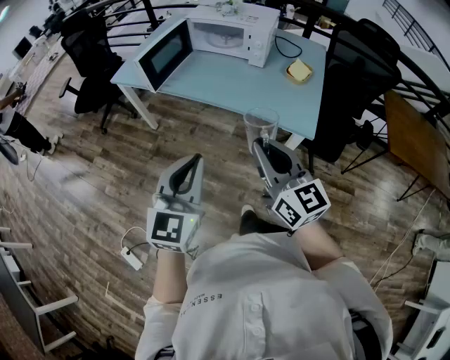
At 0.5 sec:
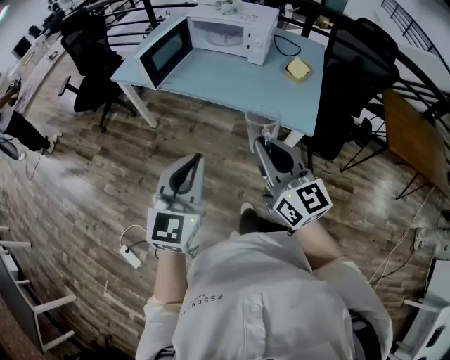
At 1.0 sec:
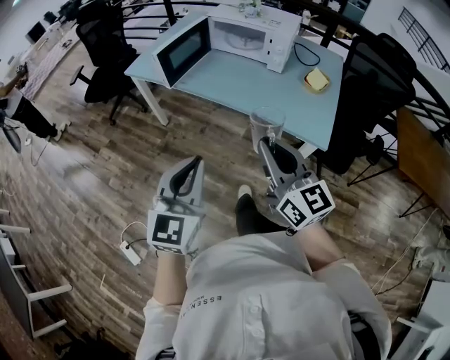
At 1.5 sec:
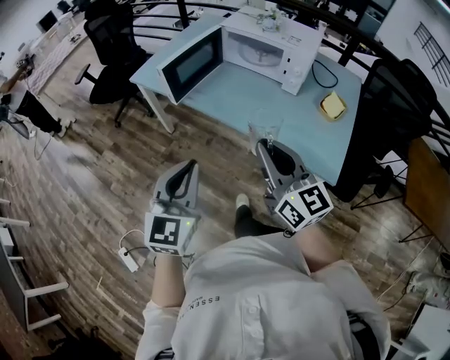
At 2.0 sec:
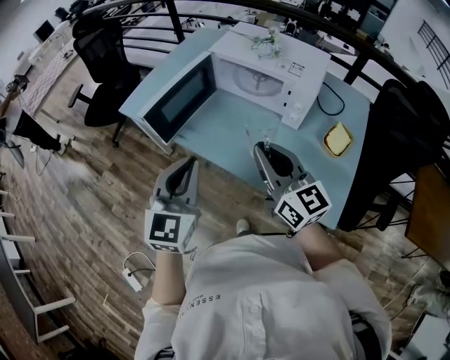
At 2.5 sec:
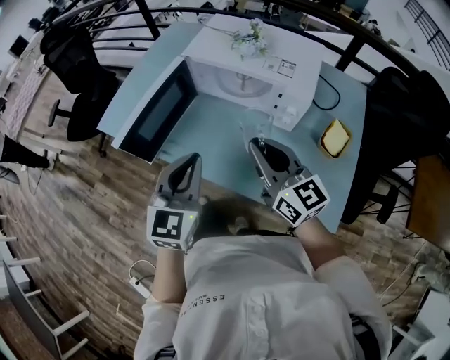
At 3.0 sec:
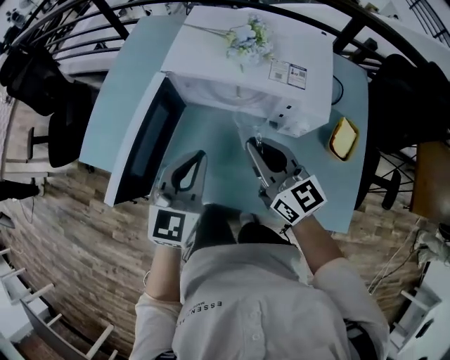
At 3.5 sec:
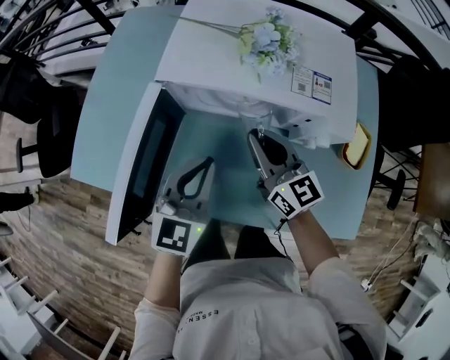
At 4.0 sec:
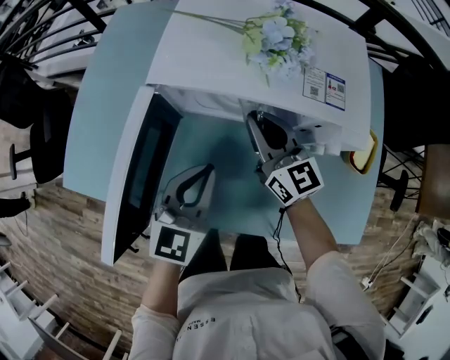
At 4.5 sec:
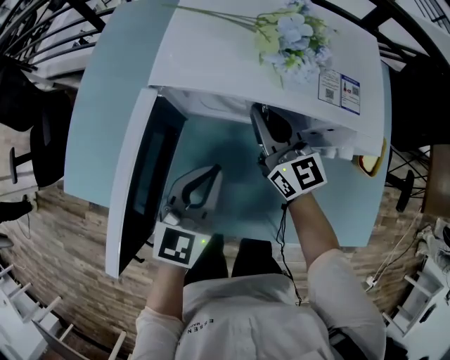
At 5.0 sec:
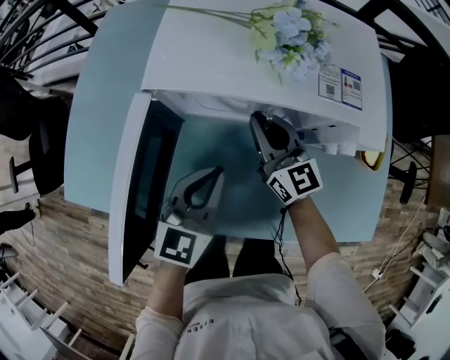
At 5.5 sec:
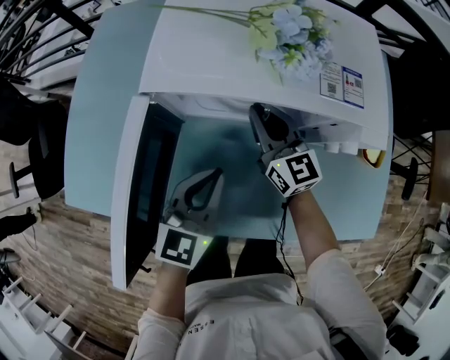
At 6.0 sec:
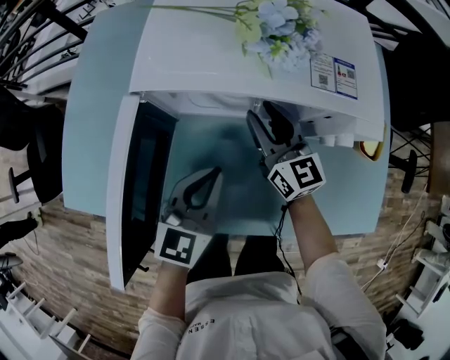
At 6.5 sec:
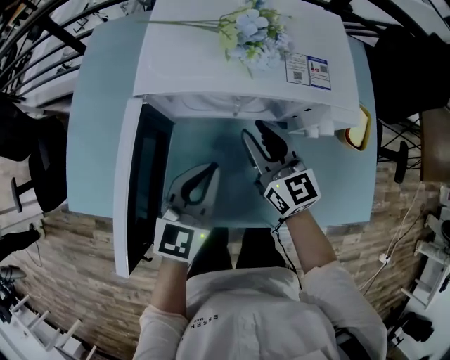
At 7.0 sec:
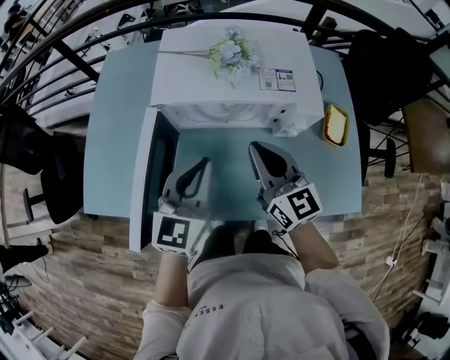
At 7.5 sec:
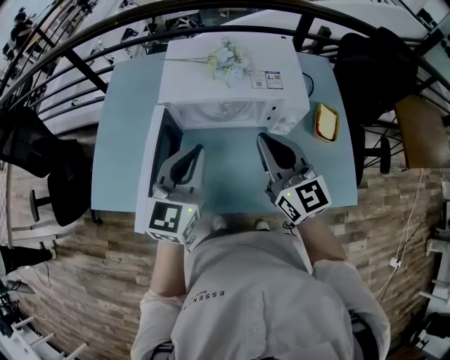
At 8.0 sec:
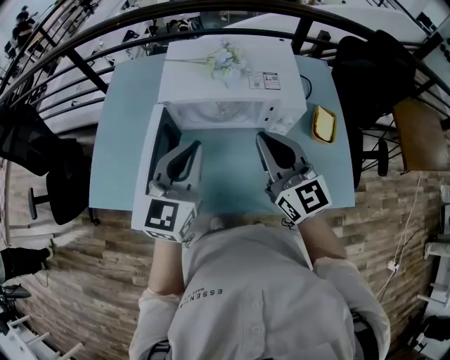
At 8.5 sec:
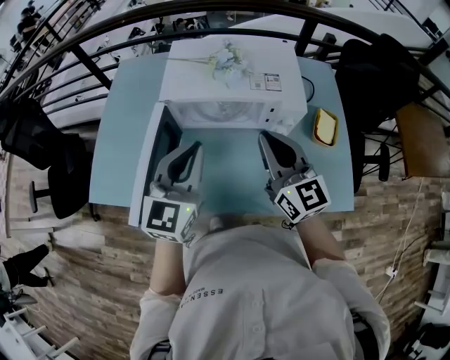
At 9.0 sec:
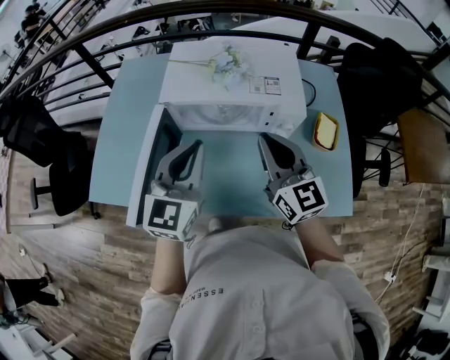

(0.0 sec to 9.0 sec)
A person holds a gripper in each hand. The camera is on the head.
0.0 sec - 2.0 sec: The grippers both shift forward by approximately 35 cm.
2.0 sec - 4.5 sec: The right gripper changes place by some 40 cm, and turns by some 20 degrees. Meanwhile the left gripper shifts by roughly 35 cm, and turns by some 30 degrees.
4.5 sec - 7.0 sec: The left gripper heads upward, covering approximately 10 cm. The right gripper is displaced backward and upward by about 15 cm, and opens, then closes once more.
7.0 sec - 9.0 sec: Both grippers move upward, some 5 cm.

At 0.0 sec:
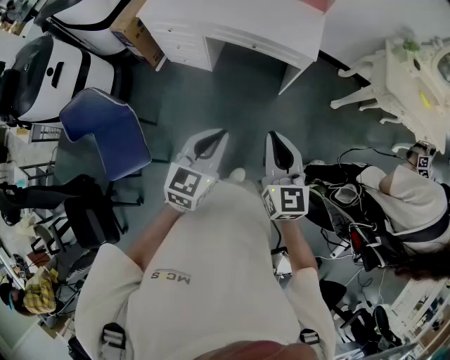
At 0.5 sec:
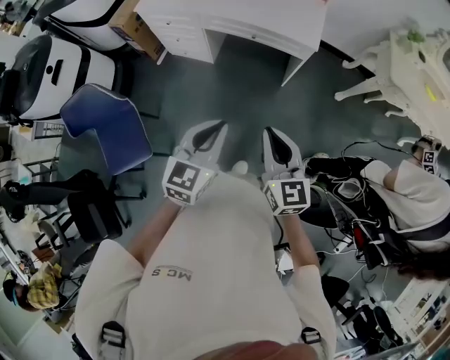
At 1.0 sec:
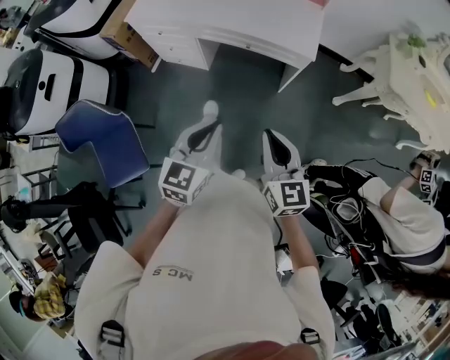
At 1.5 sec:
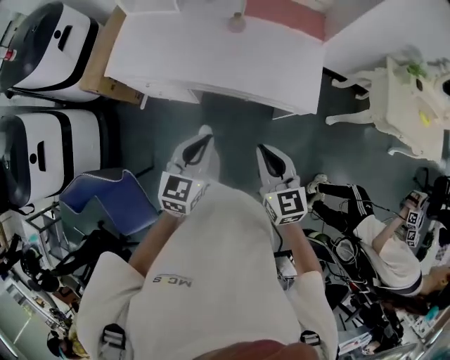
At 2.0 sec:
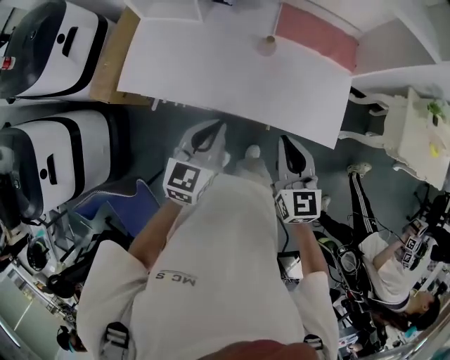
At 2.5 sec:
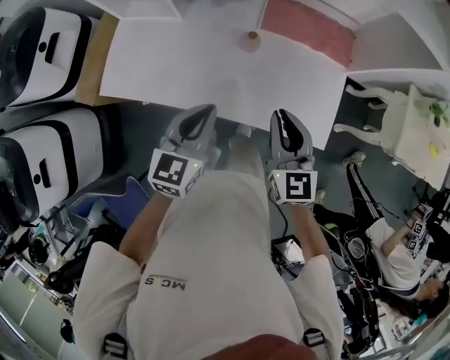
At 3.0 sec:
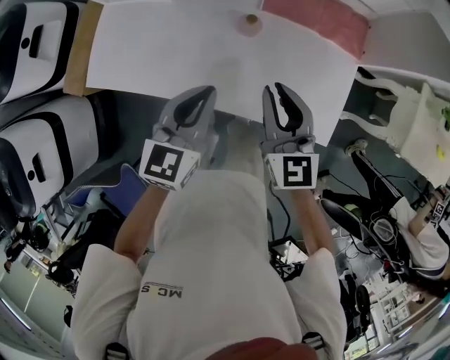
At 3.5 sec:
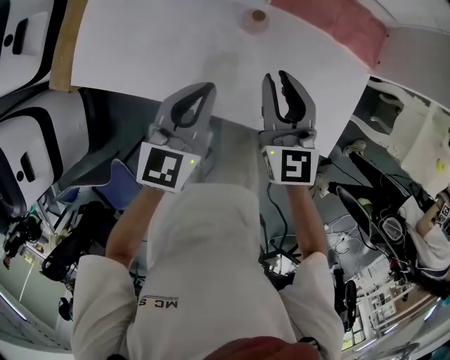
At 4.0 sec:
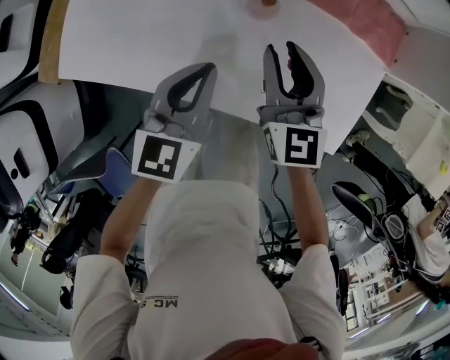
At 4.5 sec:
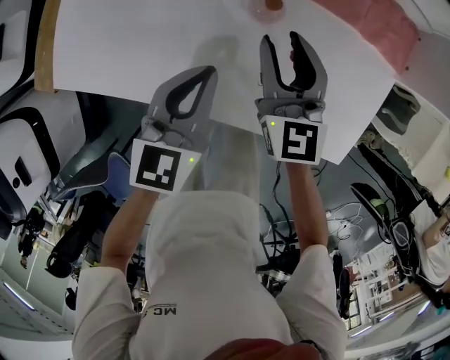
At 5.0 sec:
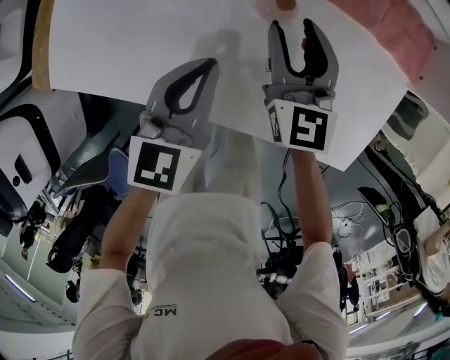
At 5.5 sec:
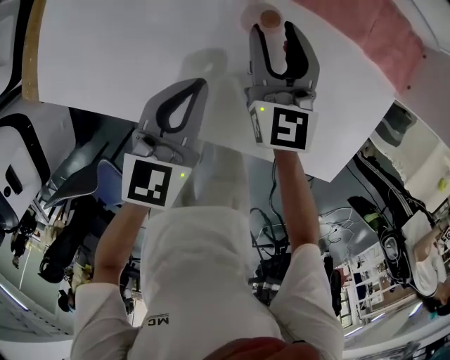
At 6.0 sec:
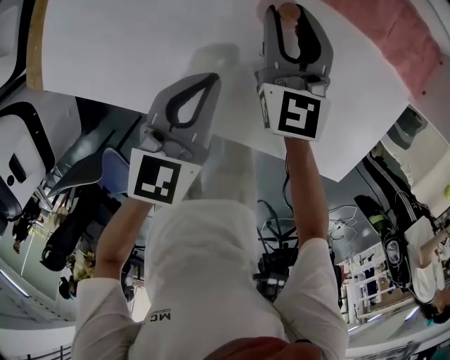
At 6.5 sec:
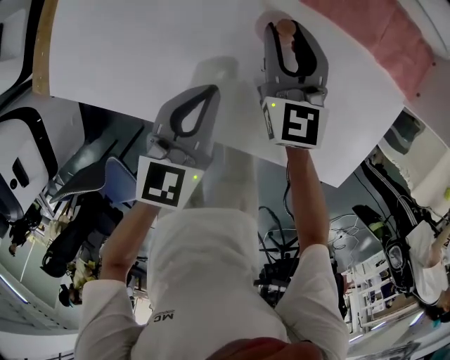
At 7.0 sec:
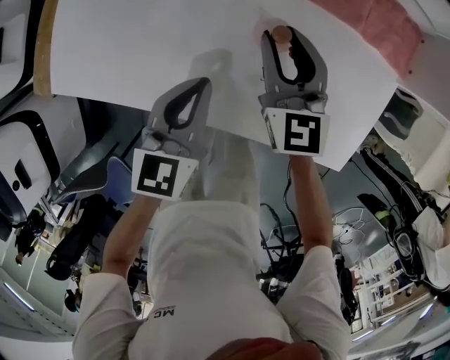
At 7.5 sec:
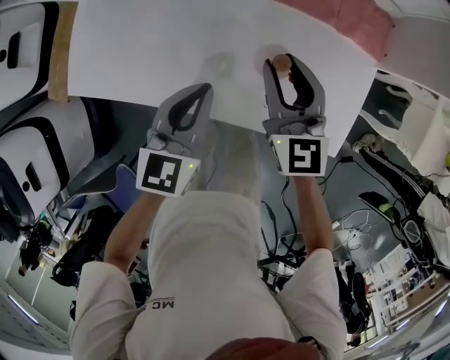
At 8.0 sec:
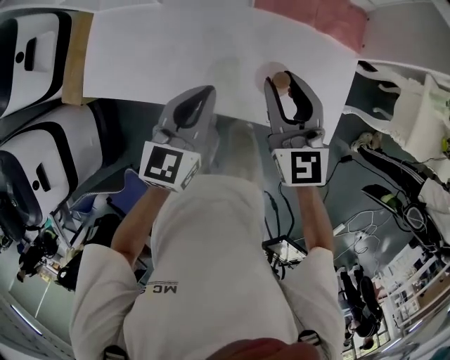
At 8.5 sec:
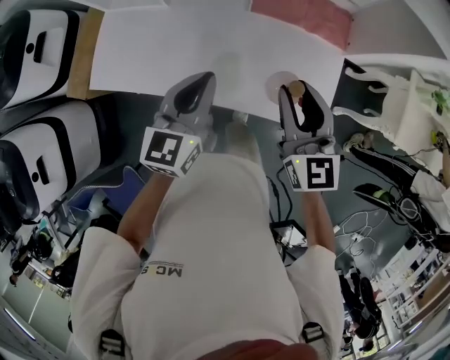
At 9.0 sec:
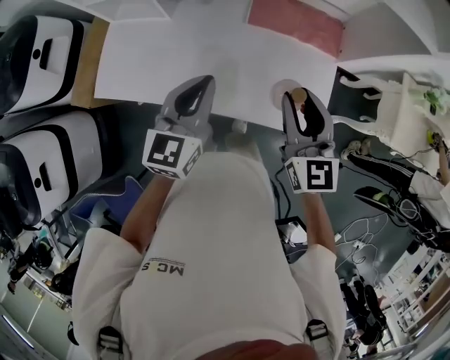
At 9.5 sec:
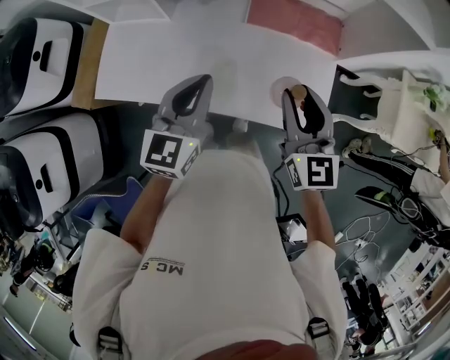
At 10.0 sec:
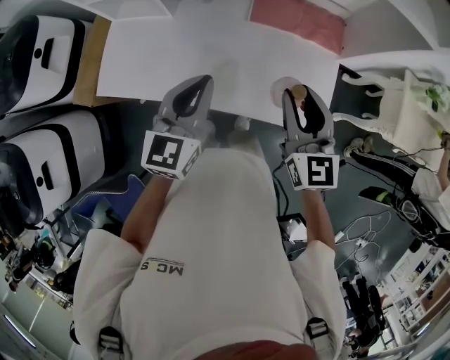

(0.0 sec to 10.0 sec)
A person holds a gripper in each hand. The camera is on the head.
0.0 sec - 2.0 sec: The pair of grippers is taken to the left and forward, about 50 cm.
2.0 sec - 4.0 sec: The grippers both shift forward and downward by about 30 cm. The right gripper opens up.
4.0 sec - 6.0 sec: The right gripper goes approximately 15 cm downward and forward. Meanwhile the left gripper travels downward by roughly 10 cm.
6.0 sec - 8.0 sec: The two grippers go approximately 30 cm upward and backward.
8.0 sec - 10.0 sec: The left gripper travels upward by approximately 10 cm. The right gripper heads upward and backward, covering about 10 cm.

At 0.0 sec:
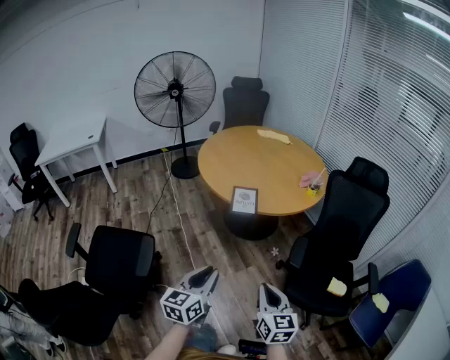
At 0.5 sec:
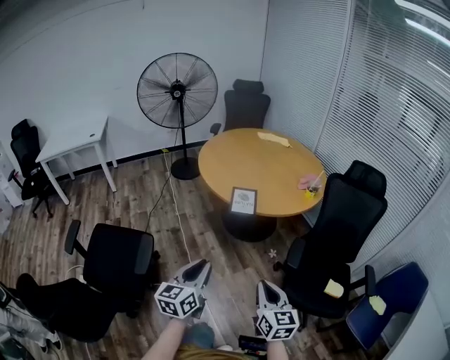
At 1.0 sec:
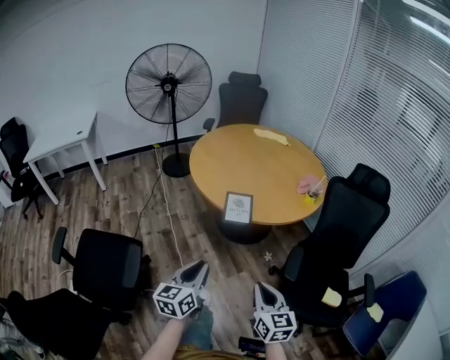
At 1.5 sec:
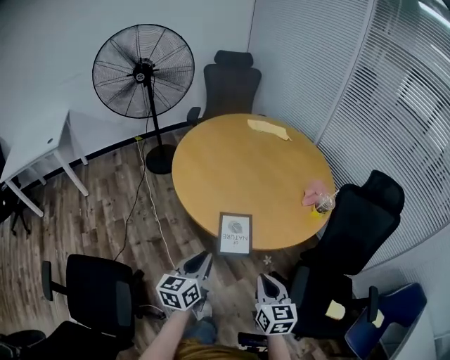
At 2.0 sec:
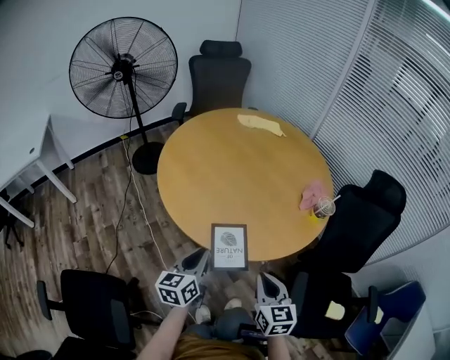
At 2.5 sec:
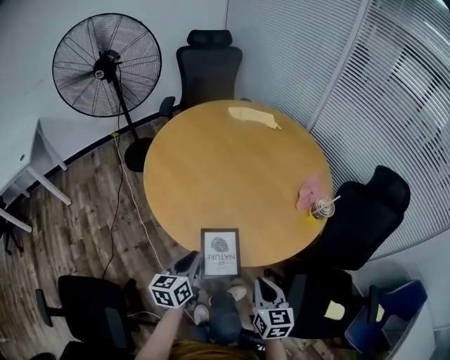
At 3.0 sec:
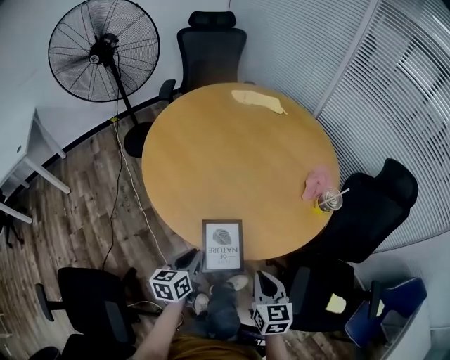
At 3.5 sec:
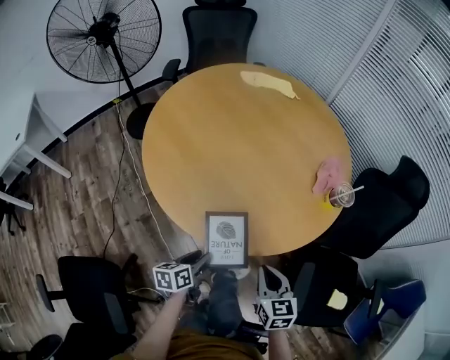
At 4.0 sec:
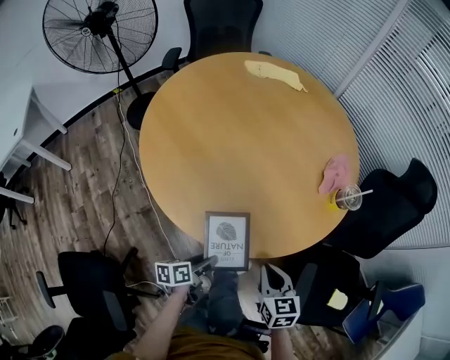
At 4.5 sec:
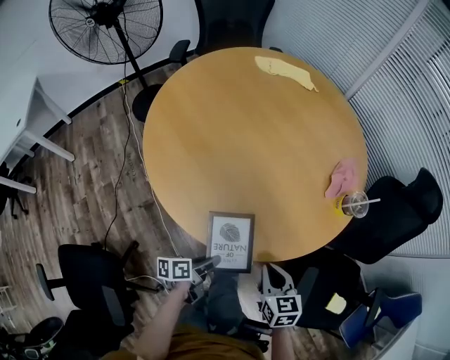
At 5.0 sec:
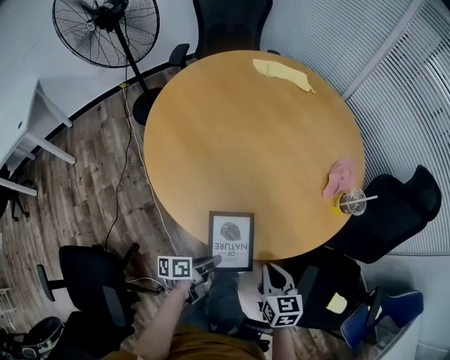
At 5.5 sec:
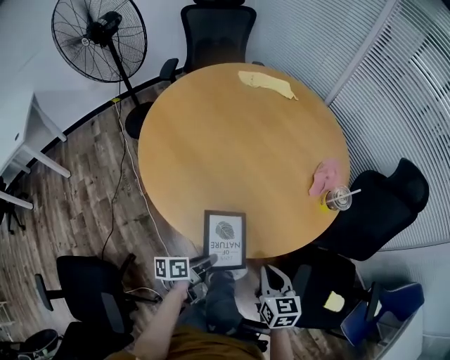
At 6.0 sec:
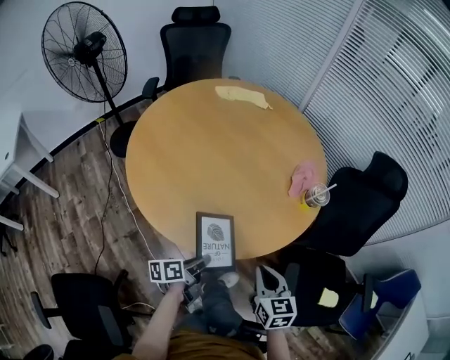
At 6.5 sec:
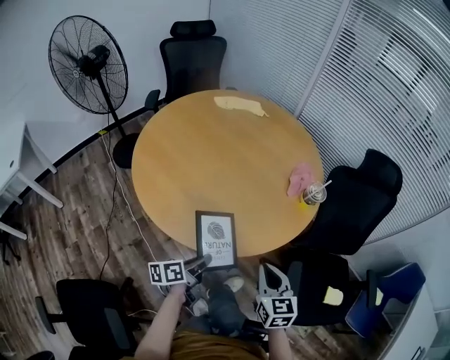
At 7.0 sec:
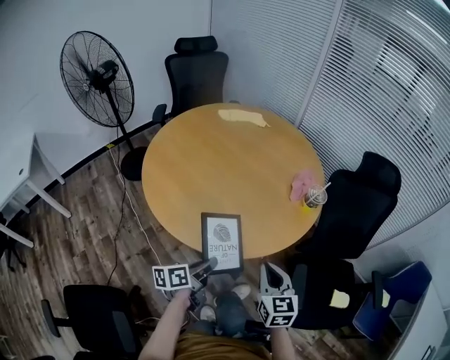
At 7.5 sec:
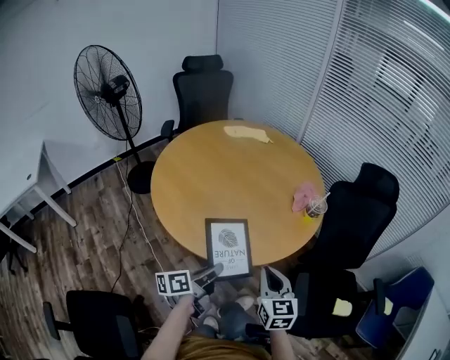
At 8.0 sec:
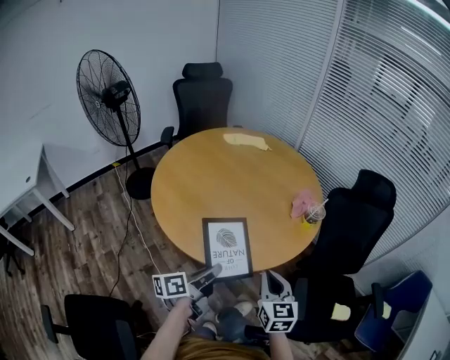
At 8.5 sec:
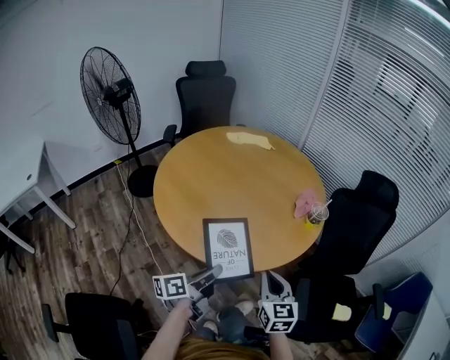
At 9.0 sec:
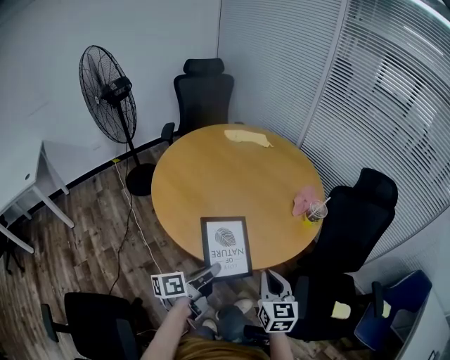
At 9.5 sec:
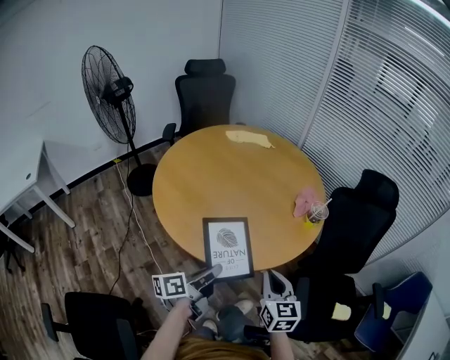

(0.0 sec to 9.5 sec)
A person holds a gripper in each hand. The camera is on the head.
0.0 sec - 2.0 sec: Both grippers are carried forward, some 40 cm.
2.0 sec - 4.0 sec: The right gripper heads downward and forward, covering approximately 15 cm; the left gripper shifts roughly 20 cm downward, changes its angle by about 50 degrees, and opens up.
4.0 sec - 5.5 sec: The left gripper changes place by some 5 cm, and closes.
5.5 sec - 7.5 sec: The left gripper goes about 15 cm upward. The right gripper moves upward and backward, roughly 15 cm, and swivels about 20 degrees.
7.5 sec - 9.5 sec: The grippers make only small movements.
